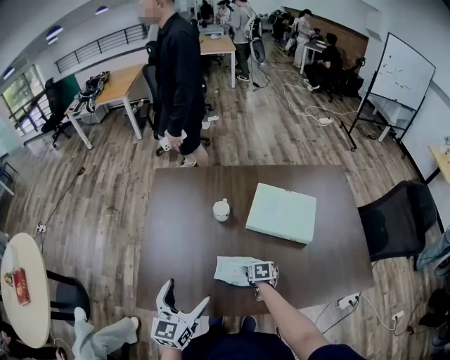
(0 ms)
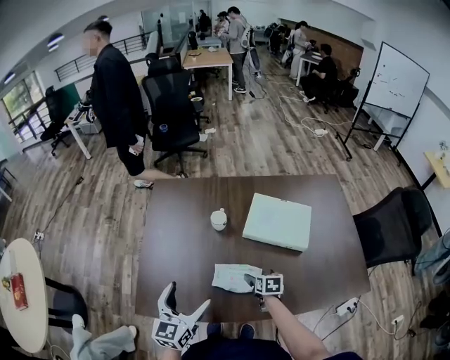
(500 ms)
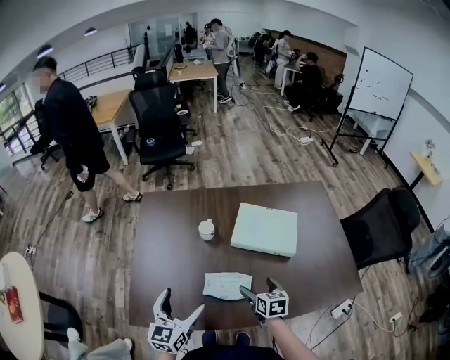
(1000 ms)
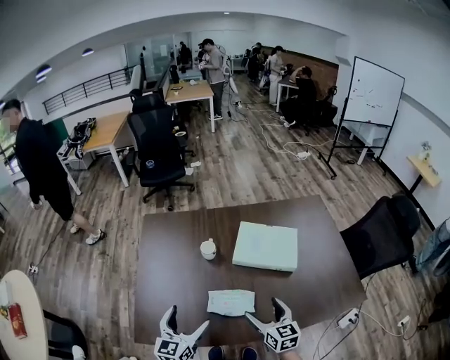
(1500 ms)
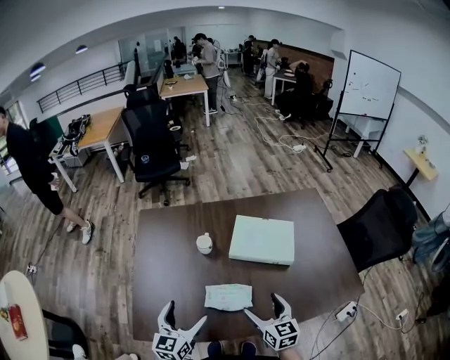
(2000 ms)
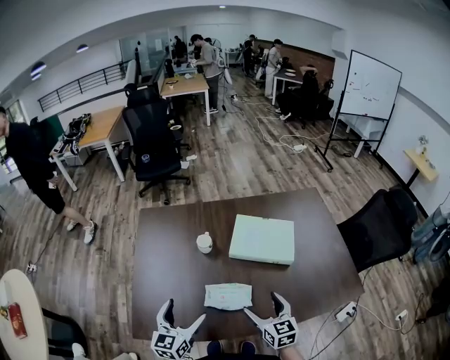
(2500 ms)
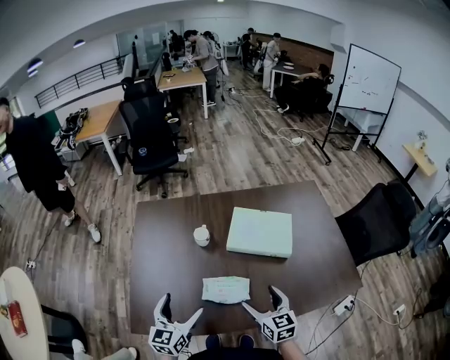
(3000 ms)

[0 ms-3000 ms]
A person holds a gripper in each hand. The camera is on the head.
0 ms to 1500 ms: The right gripper heads upward, covering some 25 cm, and angles its fingers upward, by approximately 50 degrees.
1500 ms to 3000 ms: Both grippers stay about where they are.

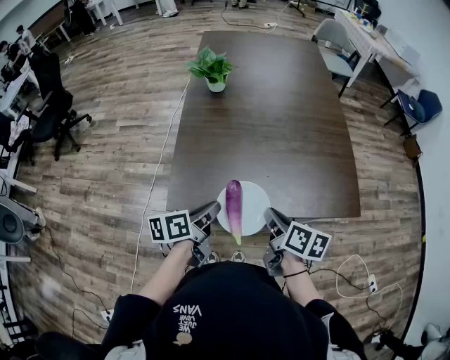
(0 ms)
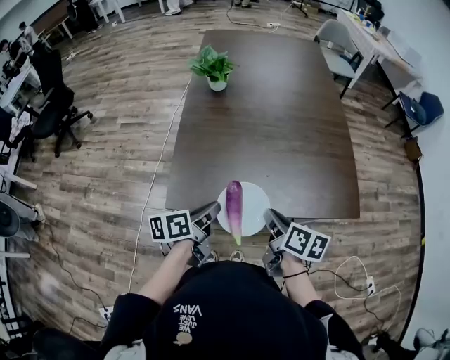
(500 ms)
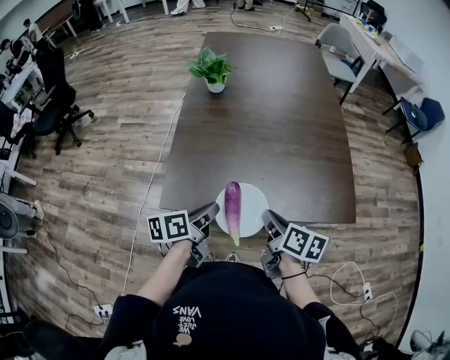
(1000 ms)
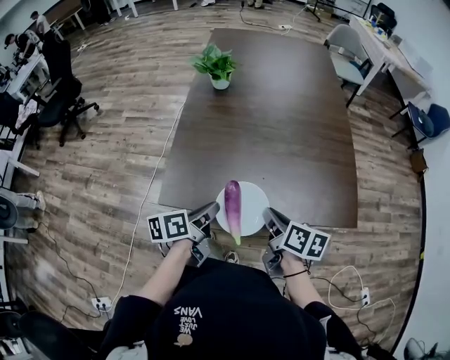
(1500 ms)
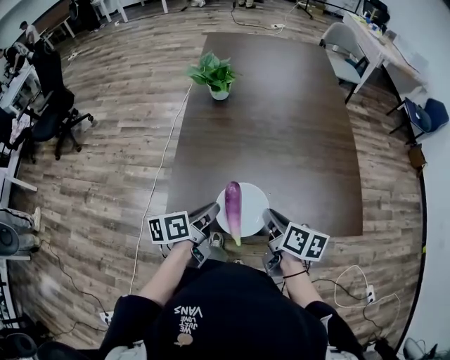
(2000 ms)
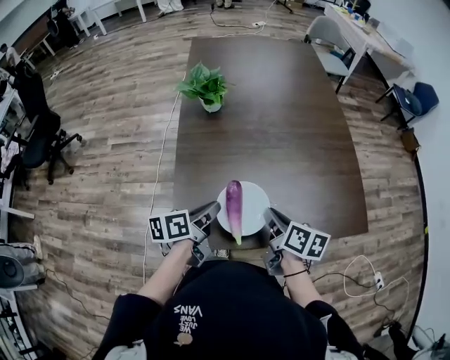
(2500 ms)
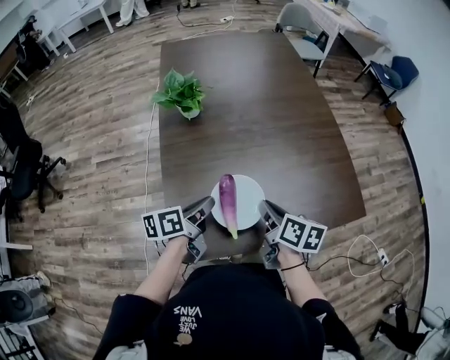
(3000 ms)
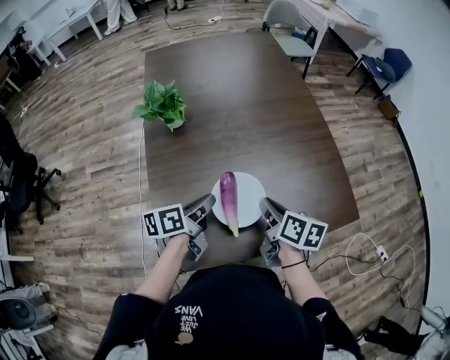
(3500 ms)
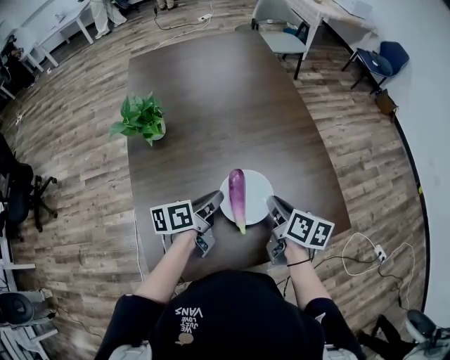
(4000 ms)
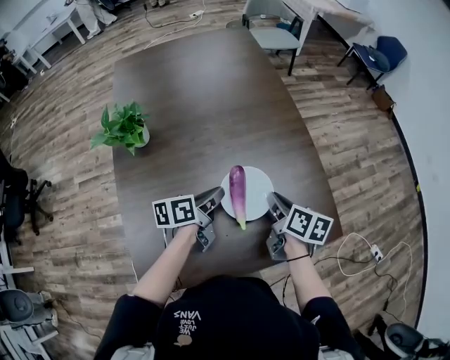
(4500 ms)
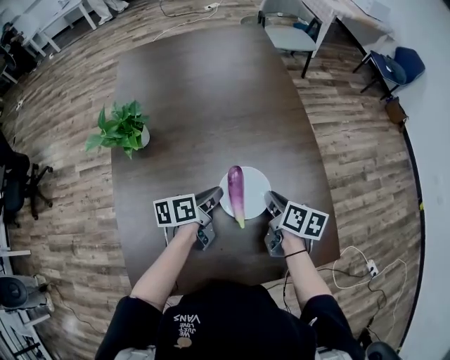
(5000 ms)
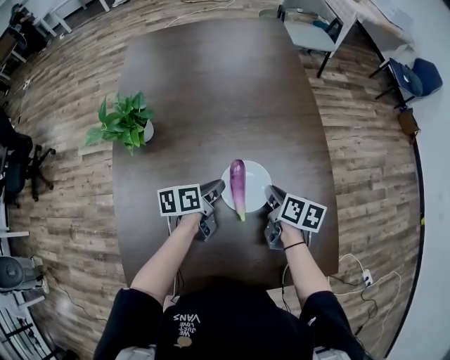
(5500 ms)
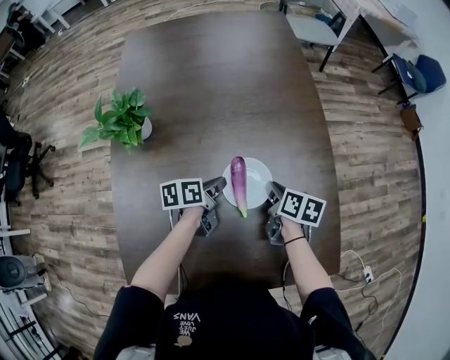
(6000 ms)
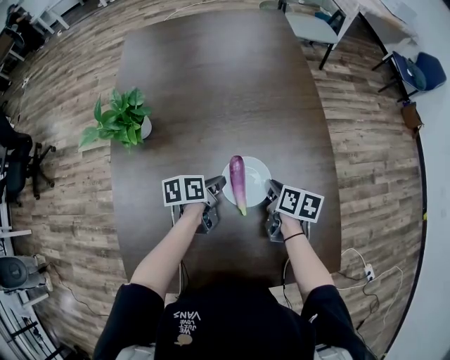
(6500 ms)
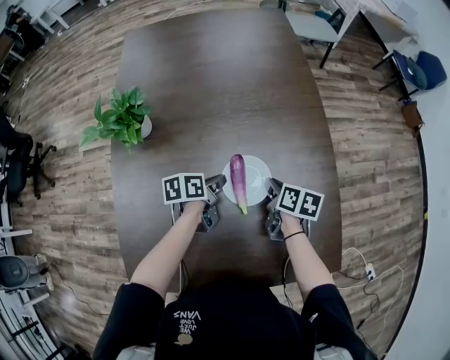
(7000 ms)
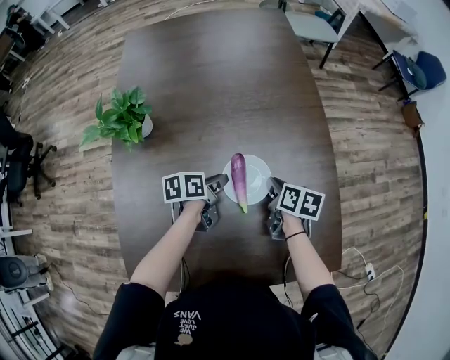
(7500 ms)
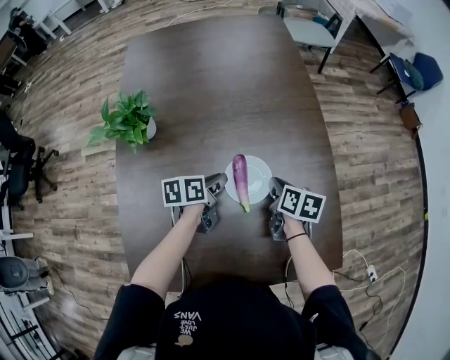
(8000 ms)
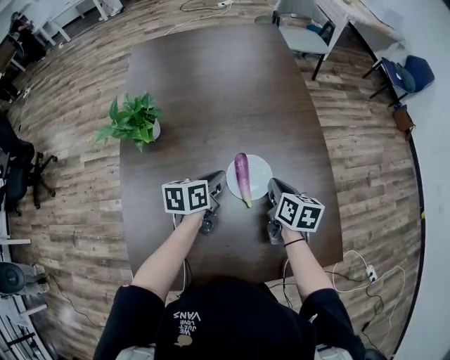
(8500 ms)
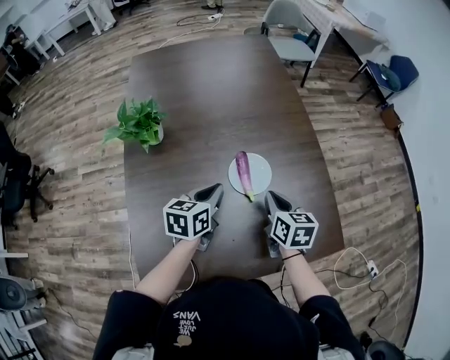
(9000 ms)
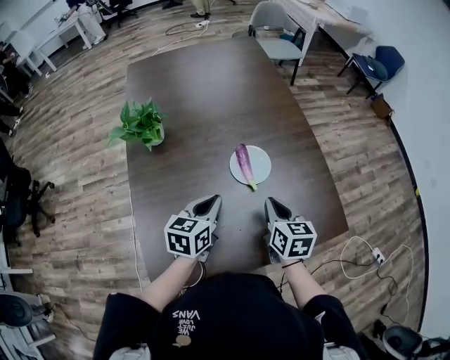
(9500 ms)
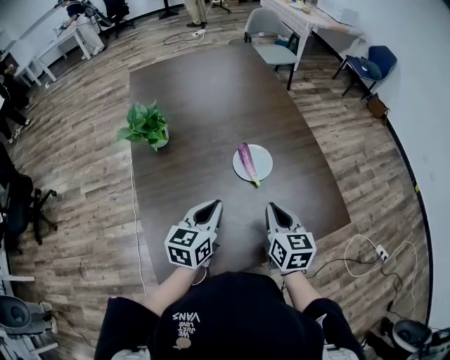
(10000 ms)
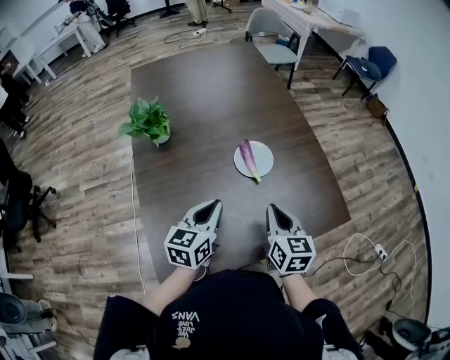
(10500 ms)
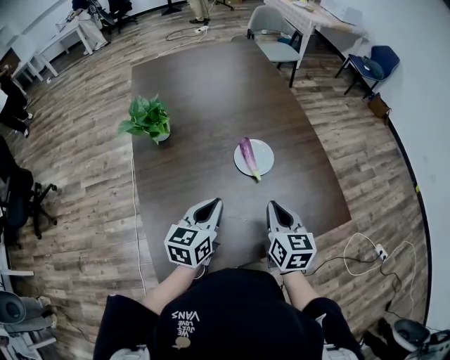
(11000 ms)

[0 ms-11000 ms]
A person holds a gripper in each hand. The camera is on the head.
0 ms to 2000 ms: Both grippers travel together forward, about 5 cm.
2000 ms to 3500 ms: Both grippers move forward, approximately 15 cm.
3500 ms to 5500 ms: The right gripper goes about 30 cm forward, downward and to the right. Meanwhile the left gripper is displaced forward, to the right and downward by some 25 cm.
5500 ms to 7500 ms: The grippers stay close to where they were, moving slightly.
7500 ms to 9000 ms: Both grippers travel together upward and backward, roughly 15 cm. The left gripper turns by approximately 30 degrees; the right gripper rotates approximately 20 degrees.
9000 ms to 11000 ms: The two grippers go some 15 cm backward.

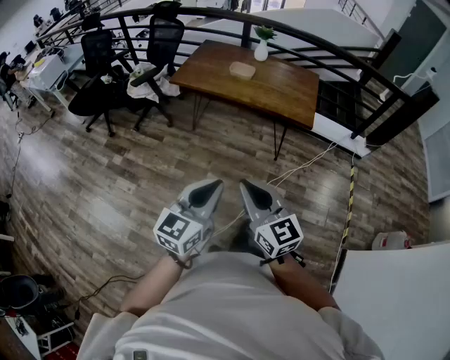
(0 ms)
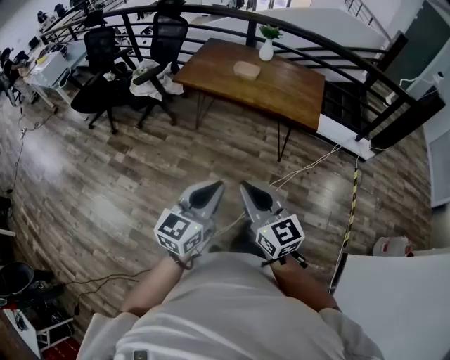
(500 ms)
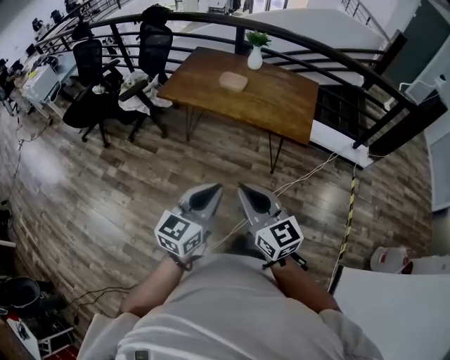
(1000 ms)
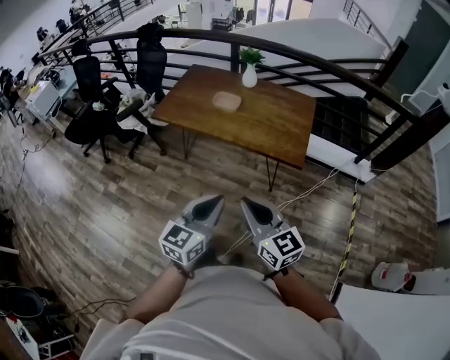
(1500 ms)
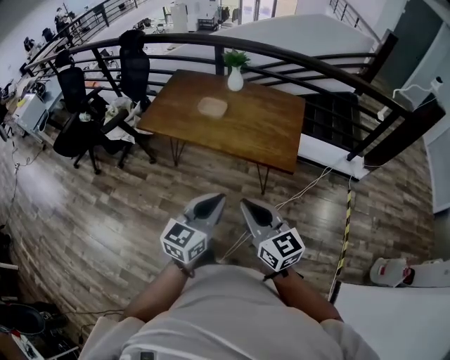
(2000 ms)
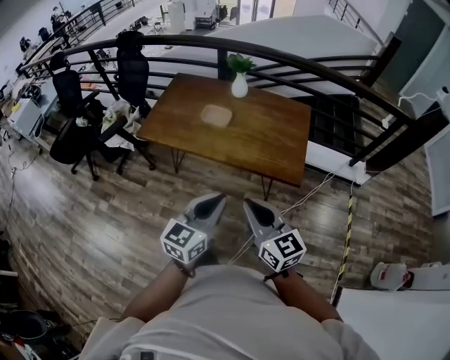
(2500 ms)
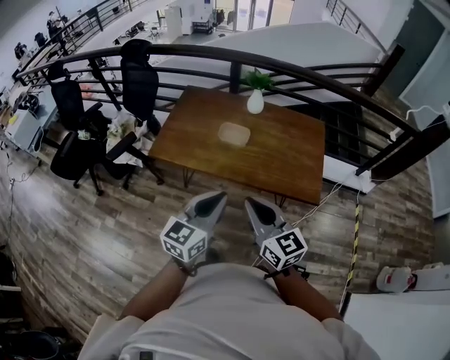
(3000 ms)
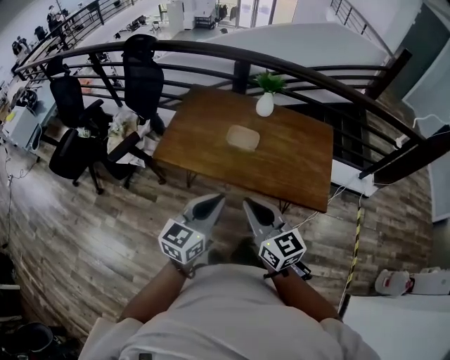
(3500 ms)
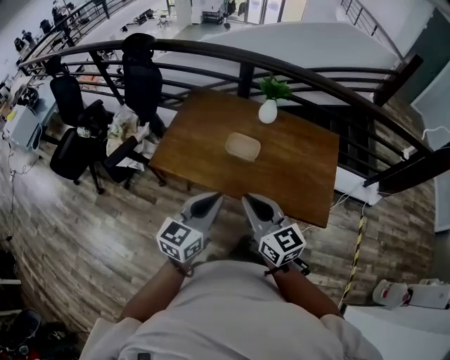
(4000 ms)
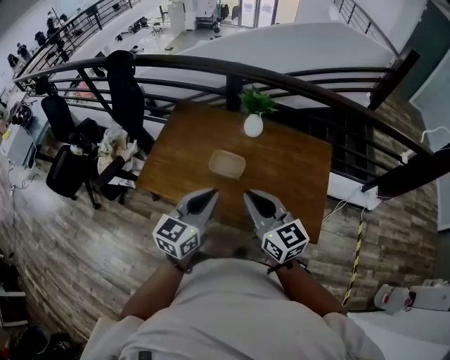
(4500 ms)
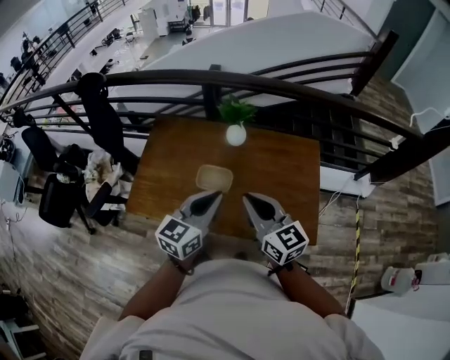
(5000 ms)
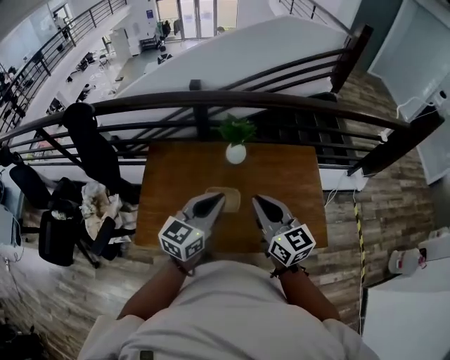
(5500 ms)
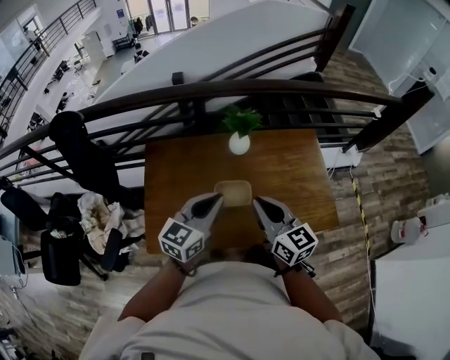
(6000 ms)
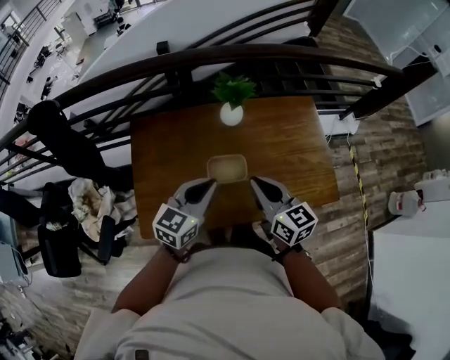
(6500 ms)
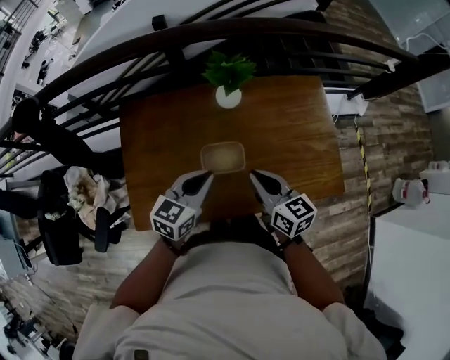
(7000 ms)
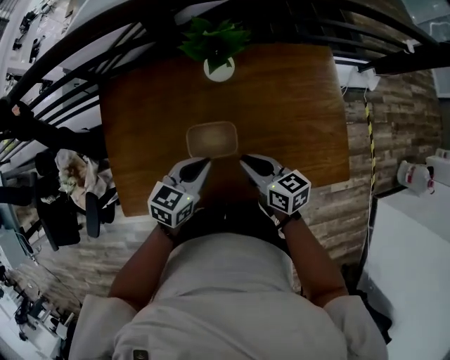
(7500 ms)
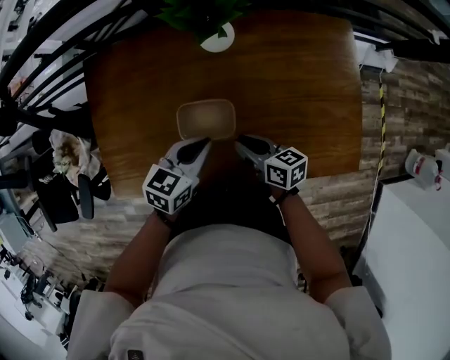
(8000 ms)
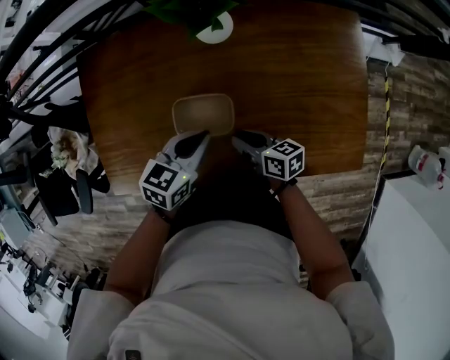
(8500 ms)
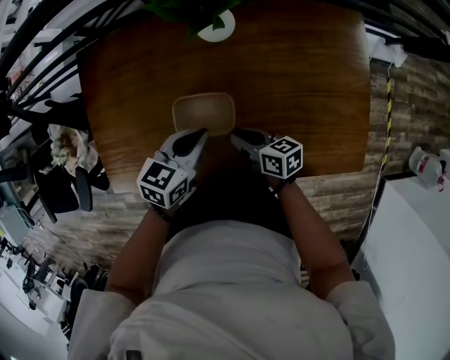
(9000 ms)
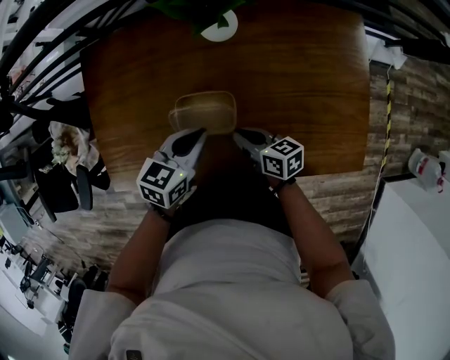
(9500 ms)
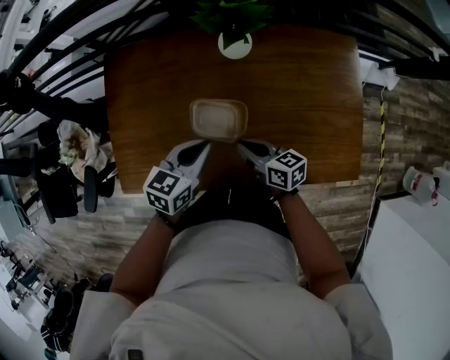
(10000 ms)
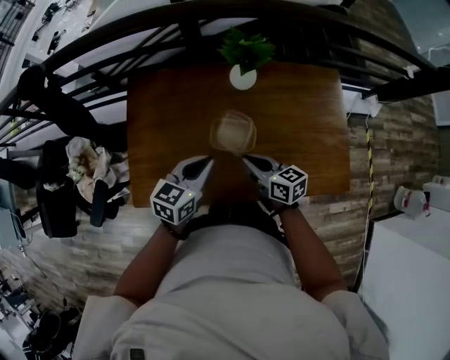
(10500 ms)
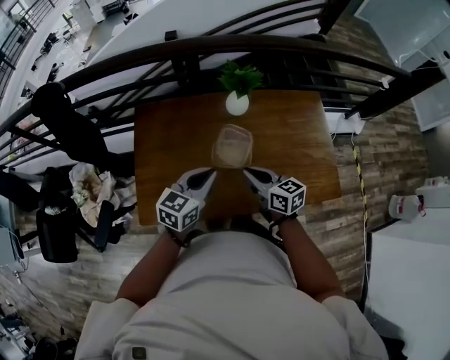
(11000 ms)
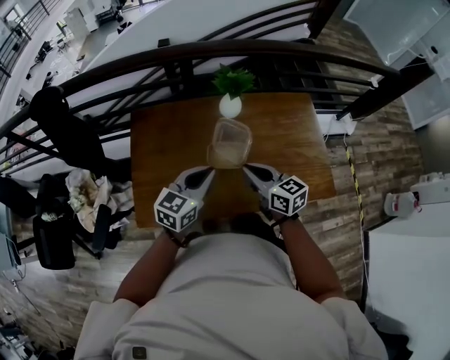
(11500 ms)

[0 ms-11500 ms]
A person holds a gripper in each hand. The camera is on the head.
0 ms to 2000 ms: Both grippers travel together forward and to the right, about 35 cm.
2000 ms to 4000 ms: The two grippers travel together, forward and to the left, about 40 cm.
4000 ms to 6000 ms: The left gripper changes place by some 30 cm, and changes its angle by some 30 degrees; the right gripper moves approximately 25 cm, and rotates some 30 degrees.
6000 ms to 7500 ms: Both grippers travel together downward, some 25 cm. The left gripper rotates approximately 30 degrees. The right gripper changes its angle by some 30 degrees.
7500 ms to 9500 ms: The left gripper moves downward, some 10 cm, while the right gripper heads downward, covering approximately 15 cm.
9500 ms to 11500 ms: The left gripper shifts roughly 25 cm upward, backward and to the left, and rotates about 30 degrees, while the right gripper moves upward, roughly 30 cm, and turns by about 30 degrees.

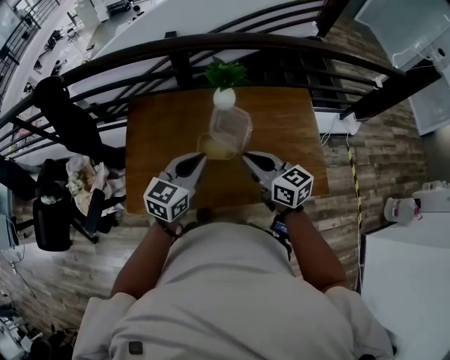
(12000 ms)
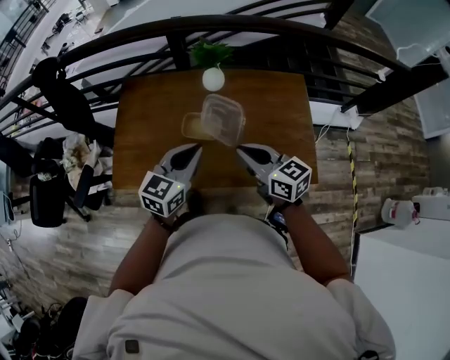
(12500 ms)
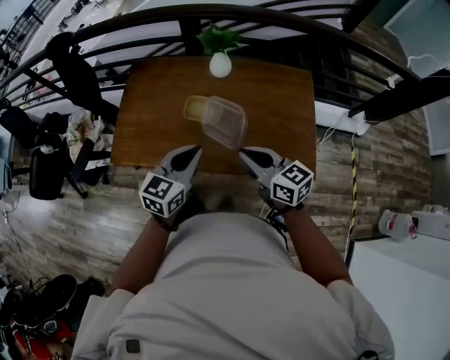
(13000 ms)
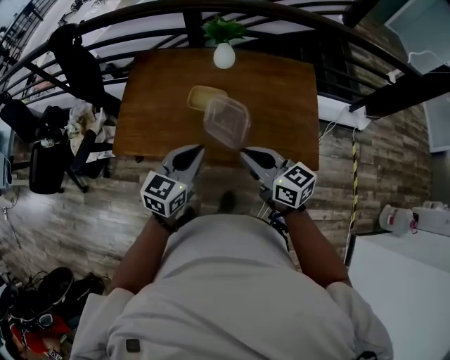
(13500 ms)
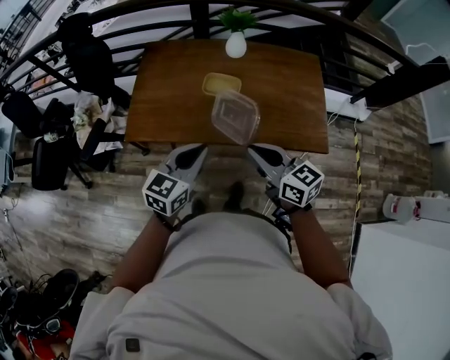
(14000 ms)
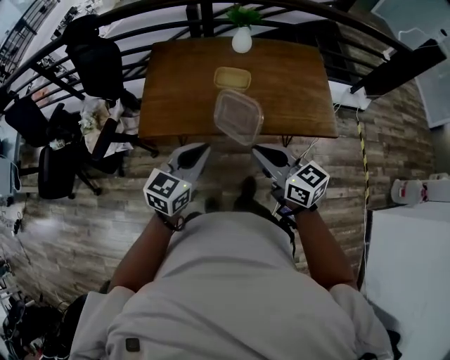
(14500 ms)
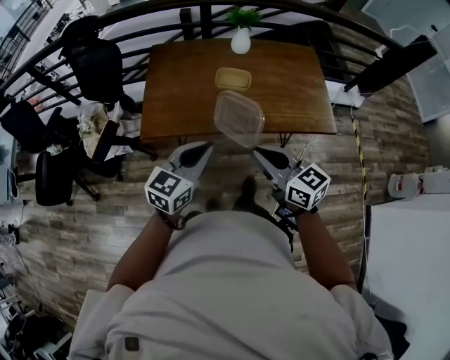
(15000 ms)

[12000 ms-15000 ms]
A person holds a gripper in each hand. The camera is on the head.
12000 ms to 13500 ms: The two grippers go approximately 20 cm backward.
13500 ms to 15000 ms: Both grippers move to the left and backward, some 25 cm.
